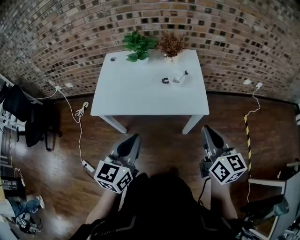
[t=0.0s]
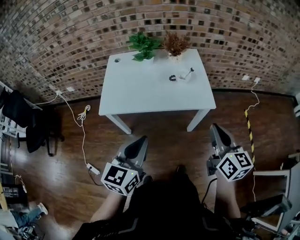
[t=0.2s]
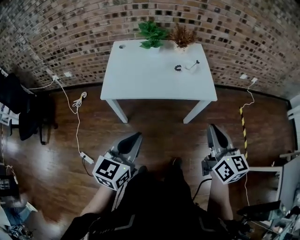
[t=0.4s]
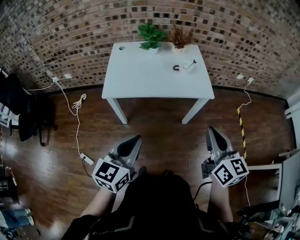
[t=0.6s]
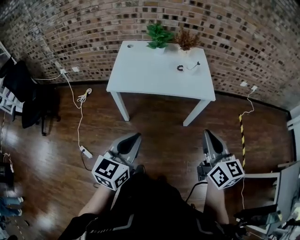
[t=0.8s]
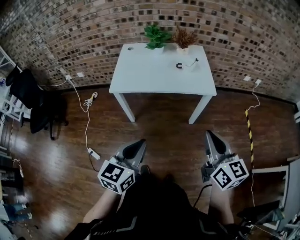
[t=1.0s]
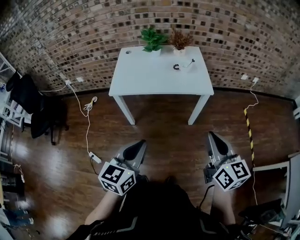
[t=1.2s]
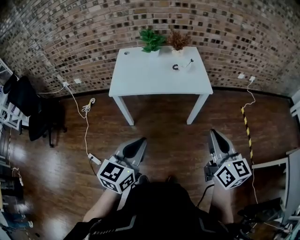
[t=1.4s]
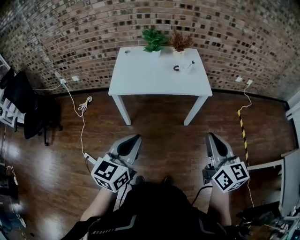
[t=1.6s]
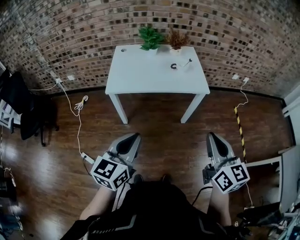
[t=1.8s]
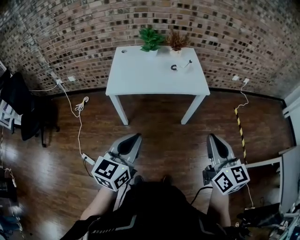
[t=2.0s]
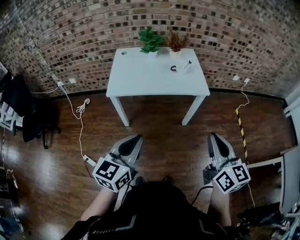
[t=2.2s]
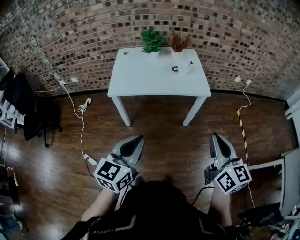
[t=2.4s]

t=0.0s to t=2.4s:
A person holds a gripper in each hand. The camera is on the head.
t=0.0s to t=1.2s: The grippers both shift backward by some 25 cm.

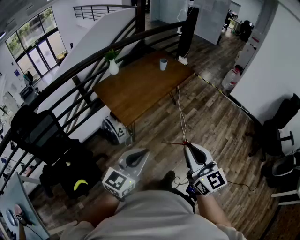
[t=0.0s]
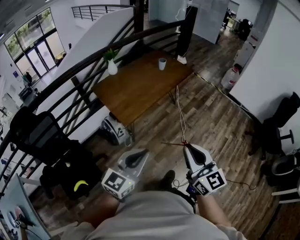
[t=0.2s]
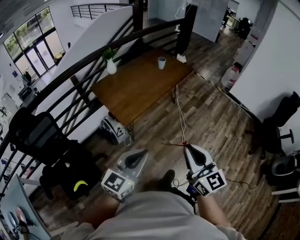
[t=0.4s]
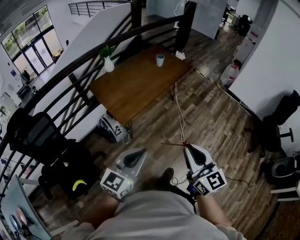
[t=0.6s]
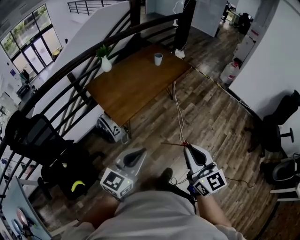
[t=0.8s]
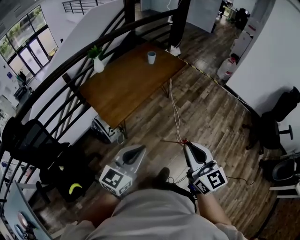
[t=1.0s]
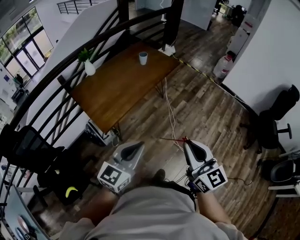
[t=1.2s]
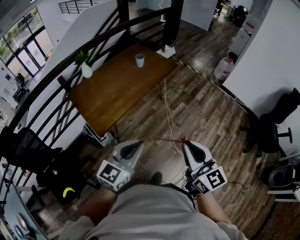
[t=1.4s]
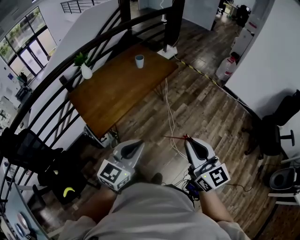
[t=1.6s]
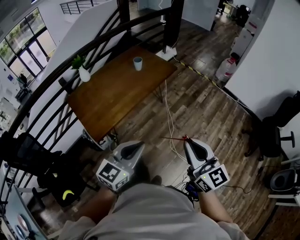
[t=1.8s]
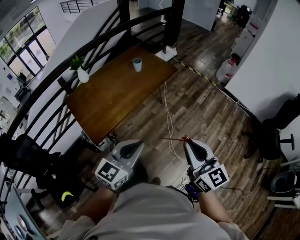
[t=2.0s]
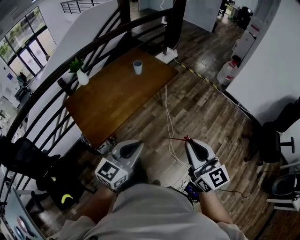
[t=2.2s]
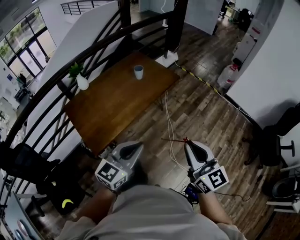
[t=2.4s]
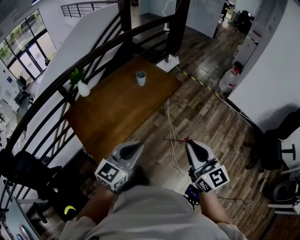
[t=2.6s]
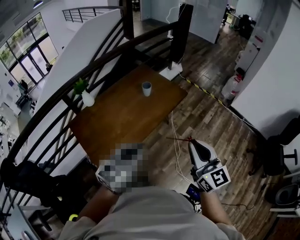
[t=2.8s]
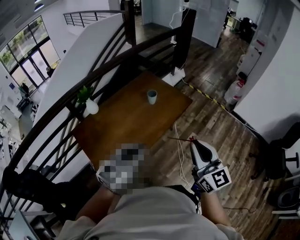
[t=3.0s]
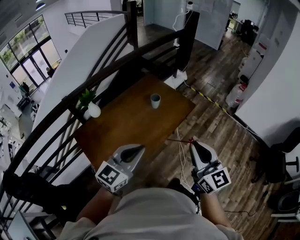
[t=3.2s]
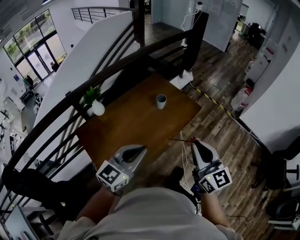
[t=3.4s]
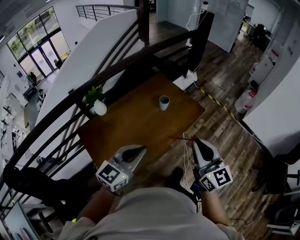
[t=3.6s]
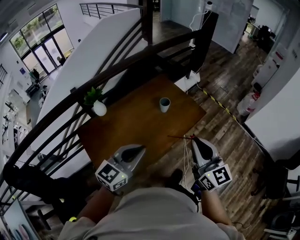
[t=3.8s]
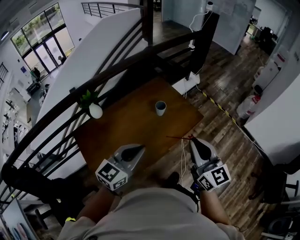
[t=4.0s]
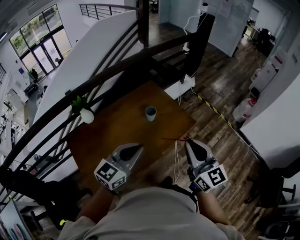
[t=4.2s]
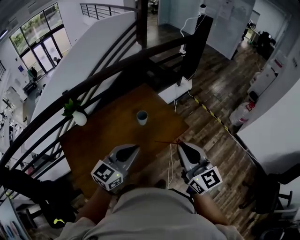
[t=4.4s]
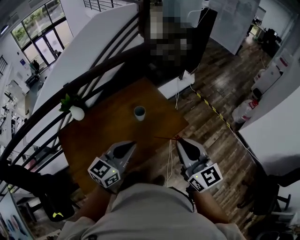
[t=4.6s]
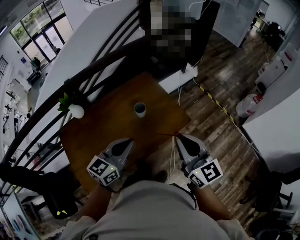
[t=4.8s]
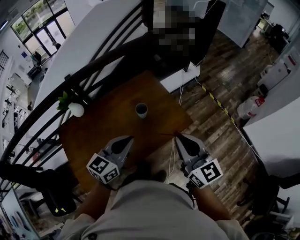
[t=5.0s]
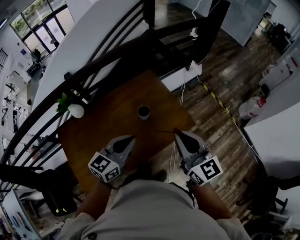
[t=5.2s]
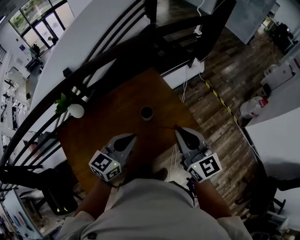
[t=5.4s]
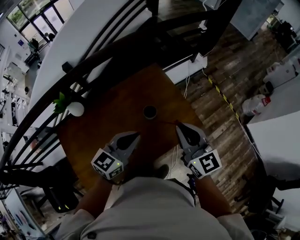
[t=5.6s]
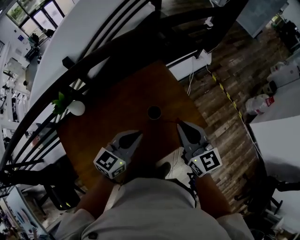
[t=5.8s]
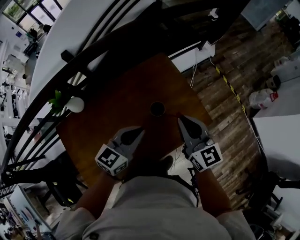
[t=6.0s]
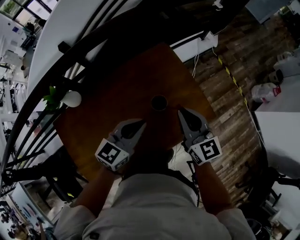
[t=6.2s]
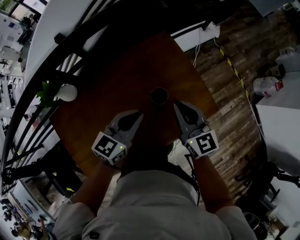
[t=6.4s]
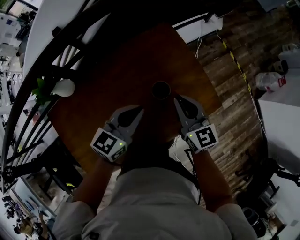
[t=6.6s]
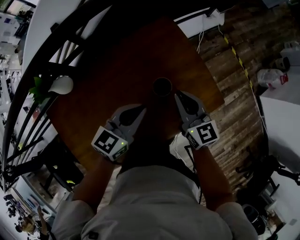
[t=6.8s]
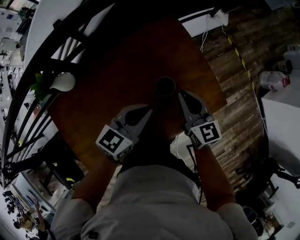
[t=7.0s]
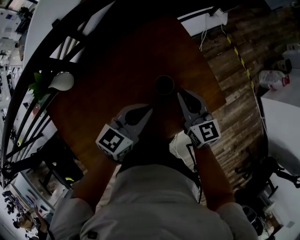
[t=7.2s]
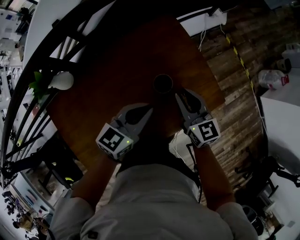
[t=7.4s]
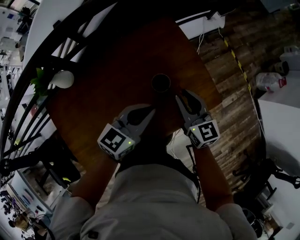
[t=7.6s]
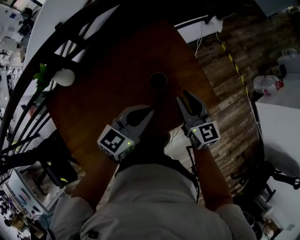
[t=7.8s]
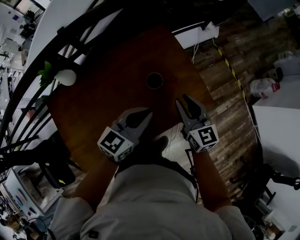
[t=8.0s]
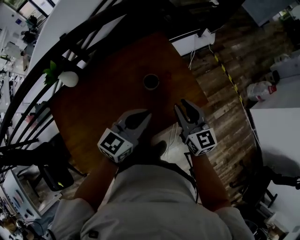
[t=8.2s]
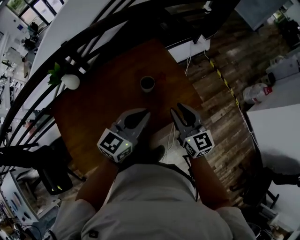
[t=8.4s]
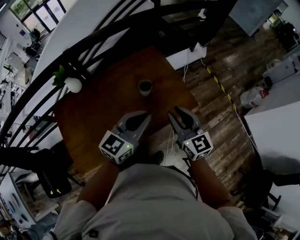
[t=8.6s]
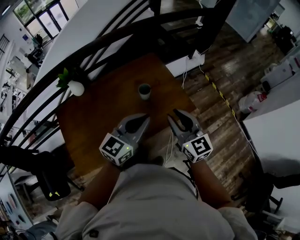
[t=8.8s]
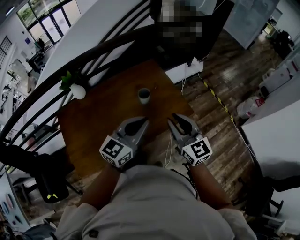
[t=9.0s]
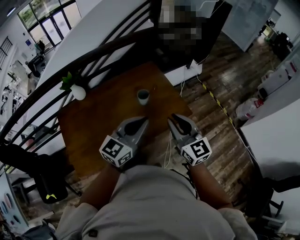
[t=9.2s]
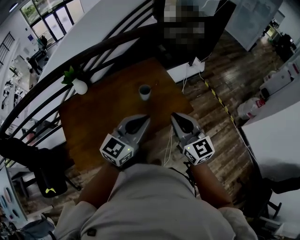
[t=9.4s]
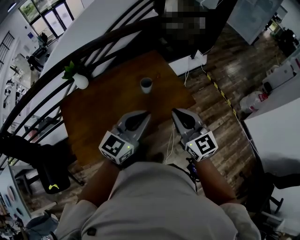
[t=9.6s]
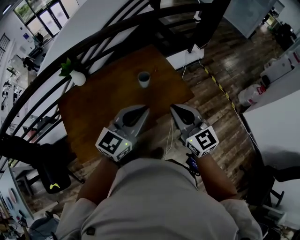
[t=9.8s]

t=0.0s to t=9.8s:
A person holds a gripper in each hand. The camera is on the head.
t=0.0s to t=1.4s: The grippers both shift forward and to the right by approximately 30 cm.
t=1.4s to t=2.8s: Both grippers move forward, roughly 30 cm.
t=2.8s to t=4.2s: Both grippers travel together forward, approximately 30 cm.
t=4.2s to t=5.6s: Both grippers move forward, some 25 cm.
t=5.6s to t=7.0s: Both grippers travel together downward and forward, about 25 cm.
t=7.0s to t=8.4s: Both grippers travel together backward, upward and to the right, some 25 cm. The right gripper opens its fingers.
t=8.4s to t=9.8s: The two grippers go roughly 20 cm backward and upward. The right gripper closes.

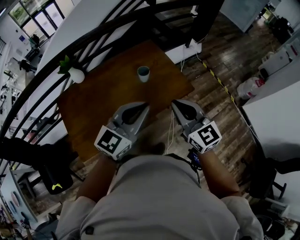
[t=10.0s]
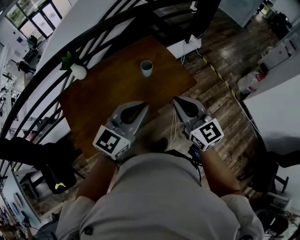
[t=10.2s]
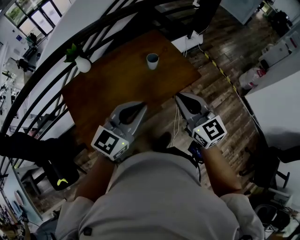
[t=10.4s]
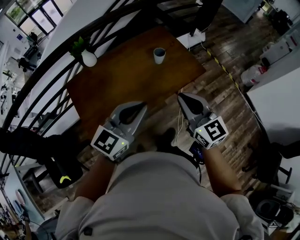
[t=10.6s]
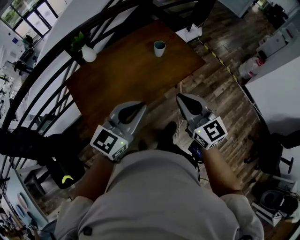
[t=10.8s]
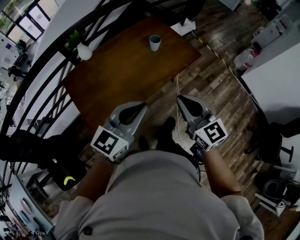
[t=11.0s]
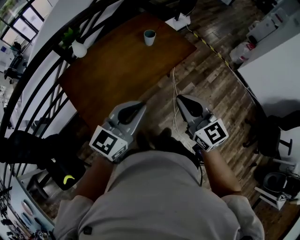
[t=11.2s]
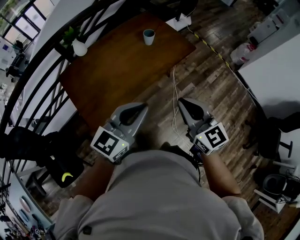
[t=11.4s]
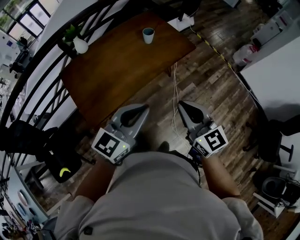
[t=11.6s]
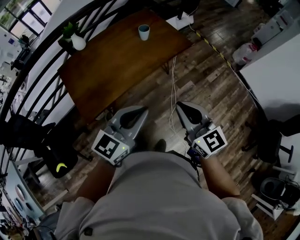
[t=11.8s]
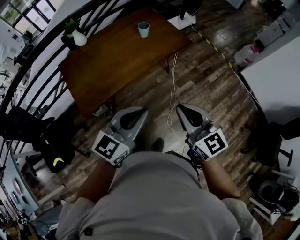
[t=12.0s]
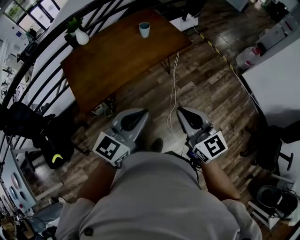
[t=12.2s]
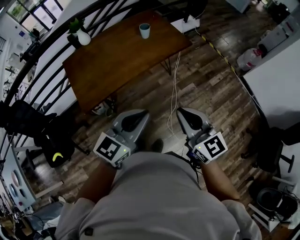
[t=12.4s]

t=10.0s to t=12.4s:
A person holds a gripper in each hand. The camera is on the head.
t=10.0s to t=11.2s: Both grippers move backward and to the left, approximately 30 cm.
t=11.2s to t=12.4s: The grippers both shift to the right and backward by approximately 25 cm.

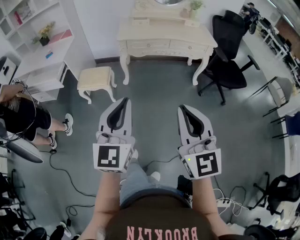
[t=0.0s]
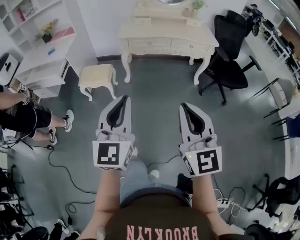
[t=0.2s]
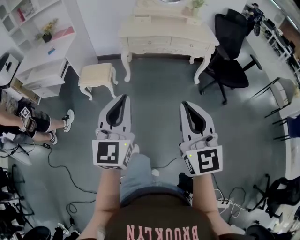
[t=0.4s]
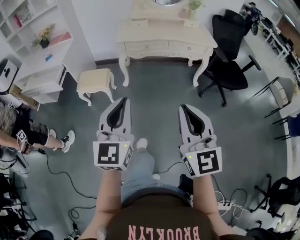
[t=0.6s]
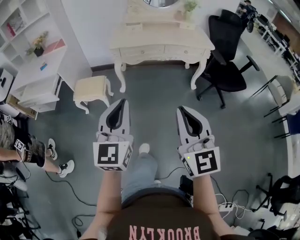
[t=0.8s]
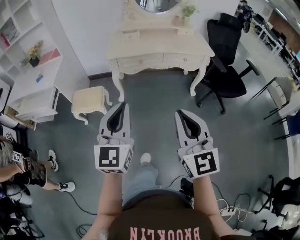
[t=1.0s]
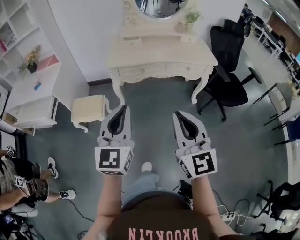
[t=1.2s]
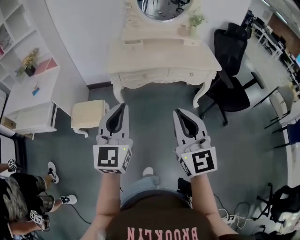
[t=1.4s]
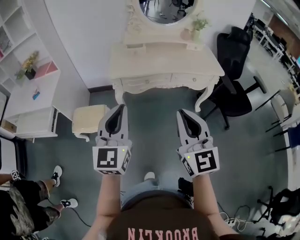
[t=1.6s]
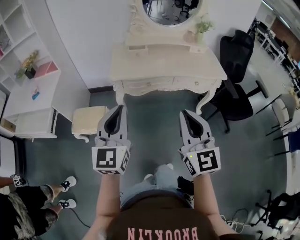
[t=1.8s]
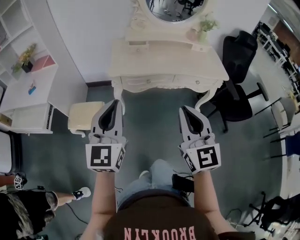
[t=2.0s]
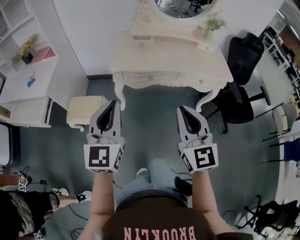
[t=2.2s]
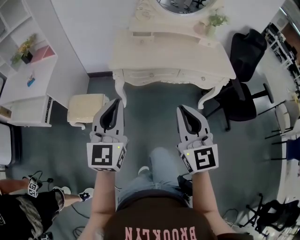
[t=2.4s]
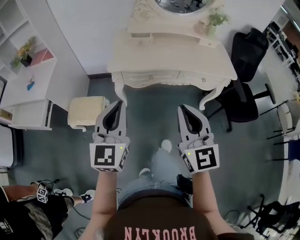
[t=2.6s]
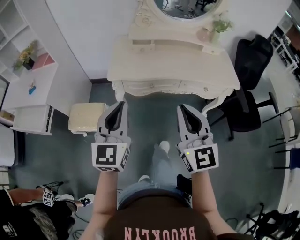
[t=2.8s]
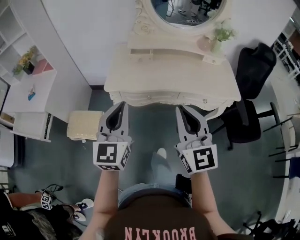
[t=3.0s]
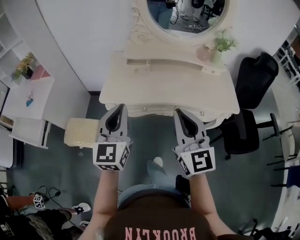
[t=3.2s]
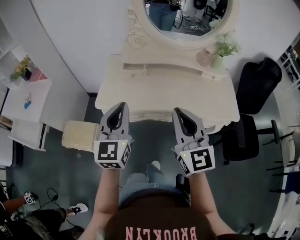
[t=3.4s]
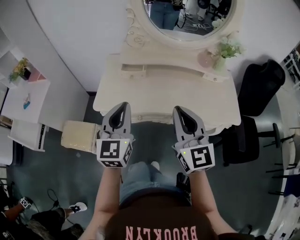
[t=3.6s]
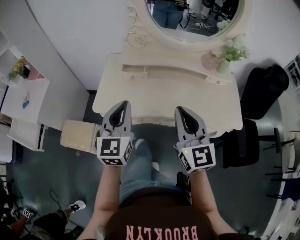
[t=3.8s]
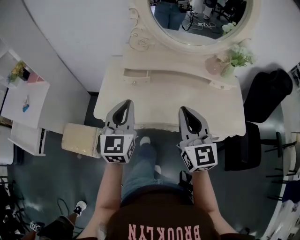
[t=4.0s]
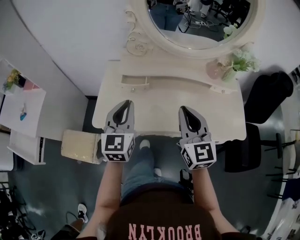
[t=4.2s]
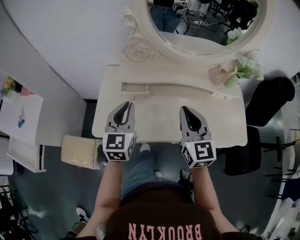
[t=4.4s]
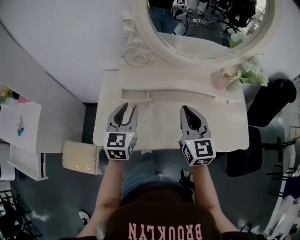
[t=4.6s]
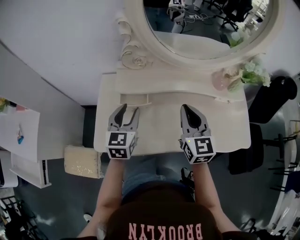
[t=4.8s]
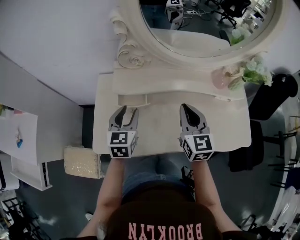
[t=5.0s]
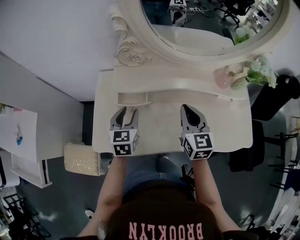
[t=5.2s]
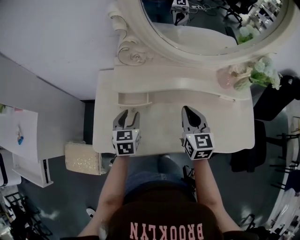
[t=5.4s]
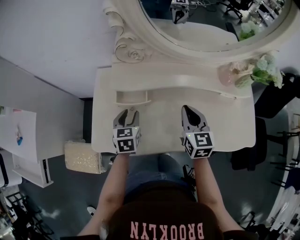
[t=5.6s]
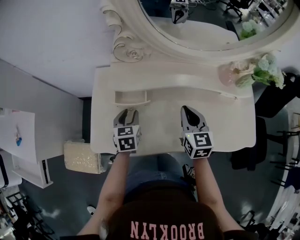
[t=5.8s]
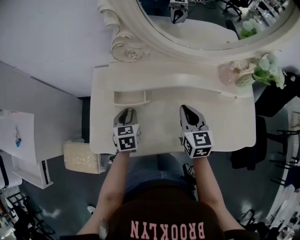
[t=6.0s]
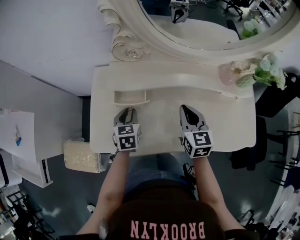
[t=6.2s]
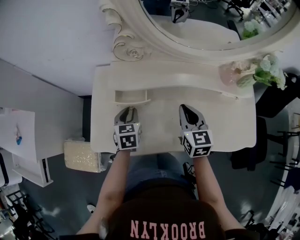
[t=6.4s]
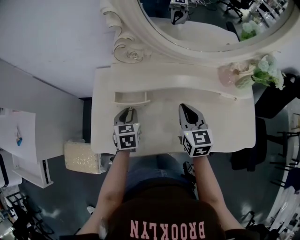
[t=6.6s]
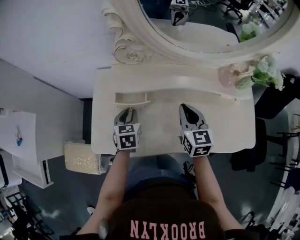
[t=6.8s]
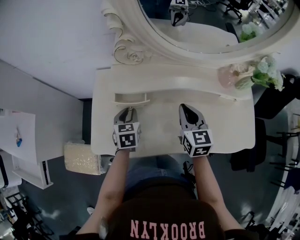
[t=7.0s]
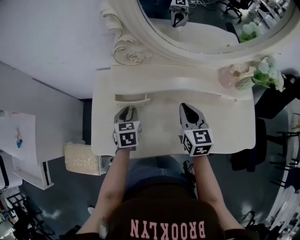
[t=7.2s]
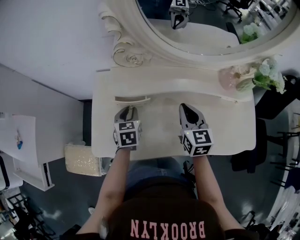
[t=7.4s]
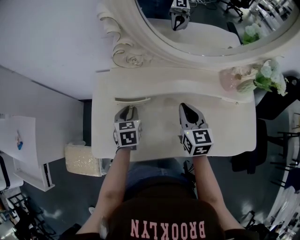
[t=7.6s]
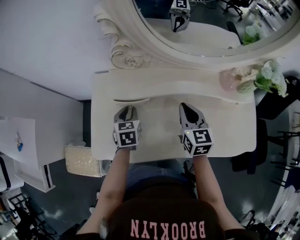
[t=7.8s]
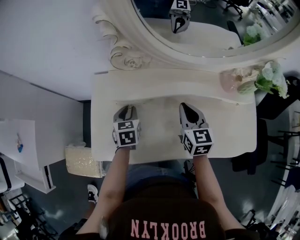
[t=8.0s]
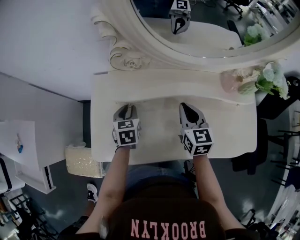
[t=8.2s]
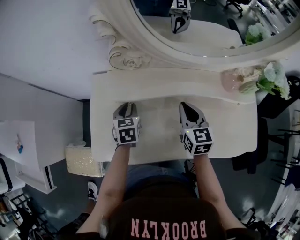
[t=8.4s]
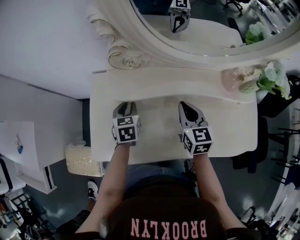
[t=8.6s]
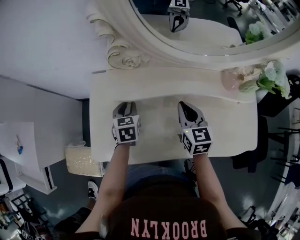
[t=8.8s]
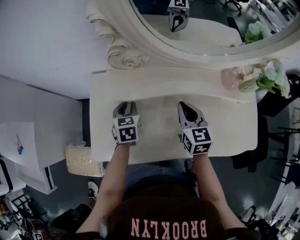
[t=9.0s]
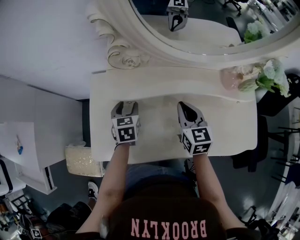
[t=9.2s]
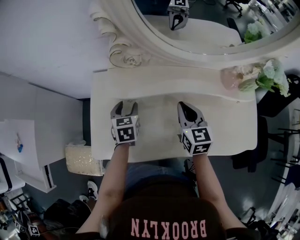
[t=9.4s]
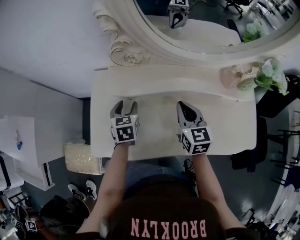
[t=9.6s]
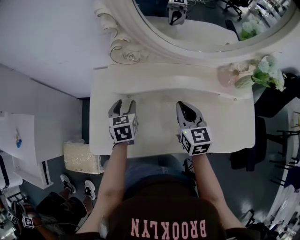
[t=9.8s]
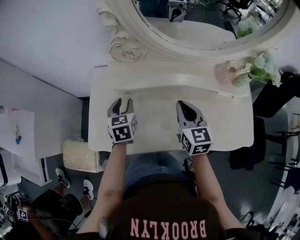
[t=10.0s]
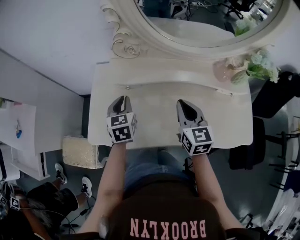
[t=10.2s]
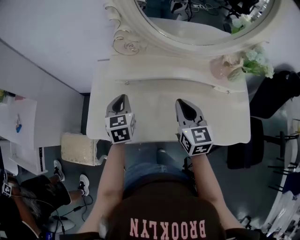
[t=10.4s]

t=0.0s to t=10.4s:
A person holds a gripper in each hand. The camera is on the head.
t=0.0s to t=1.4s: The two grippers go about 30 cm forward.
t=1.4s to t=3.0s: The two grippers go about 25 cm forward.
t=3.0s to t=4.4s: Both grippers move forward, about 35 cm.
t=4.4s to t=6.0s: The grippers both shift downward and forward by roughly 20 cm. The right gripper changes its angle by about 20 degrees, while the left gripper tips its fingers downward by roughly 30 degrees.
t=6.0s to t=7.4s: The grippers move only a little.
t=7.4s to t=9.0s: The grippers stay close to where they were, moving slightly.
t=9.0s to t=10.4s: The left gripper goes roughly 15 cm upward and backward, and opens, then closes once more; the right gripper travels backward and upward by approximately 10 cm.
